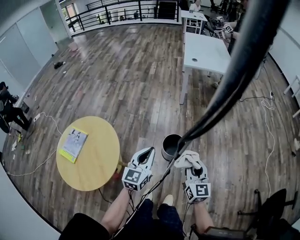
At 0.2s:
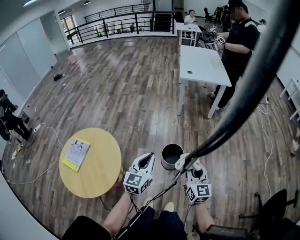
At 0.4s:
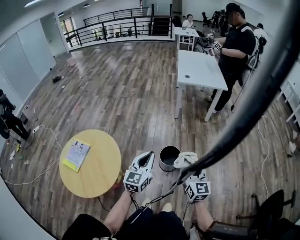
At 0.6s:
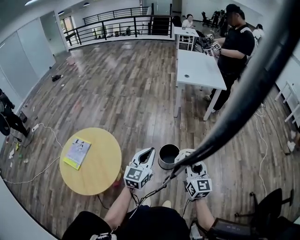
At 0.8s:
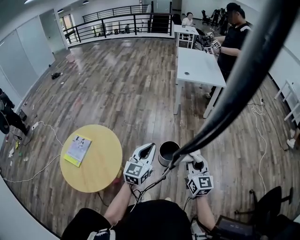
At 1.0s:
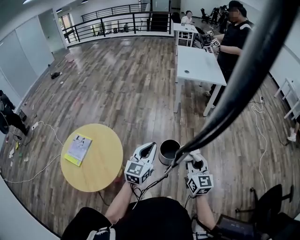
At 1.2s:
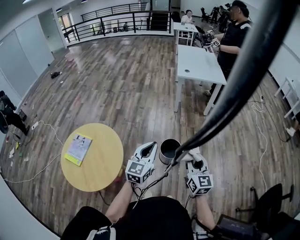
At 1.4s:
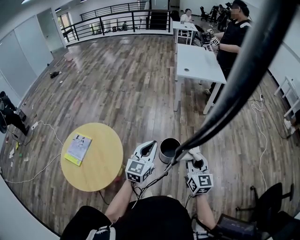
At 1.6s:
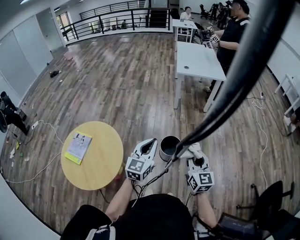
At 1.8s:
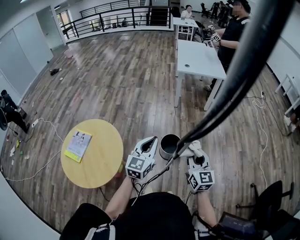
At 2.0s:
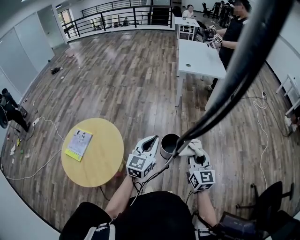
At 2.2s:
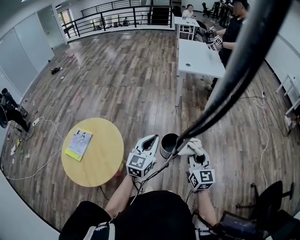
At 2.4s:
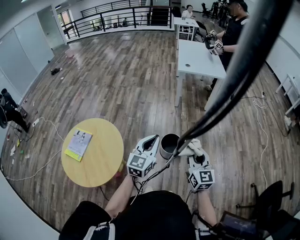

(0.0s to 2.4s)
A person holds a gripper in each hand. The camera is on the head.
0.0s - 1.2s: The two grippers go roughly 10 cm upward.
1.2s - 2.4s: Both grippers stay put.

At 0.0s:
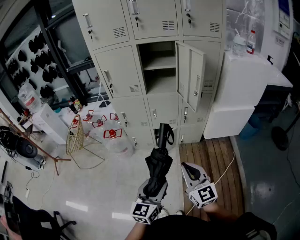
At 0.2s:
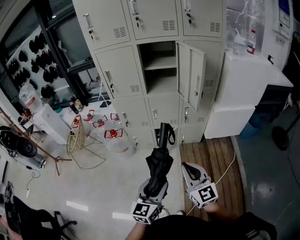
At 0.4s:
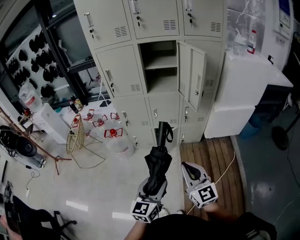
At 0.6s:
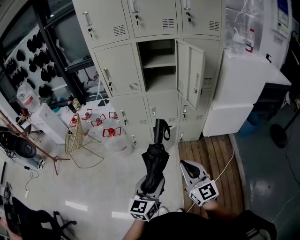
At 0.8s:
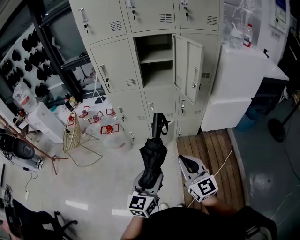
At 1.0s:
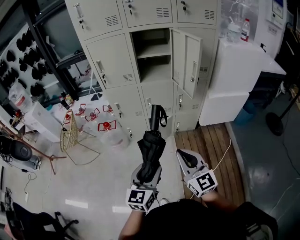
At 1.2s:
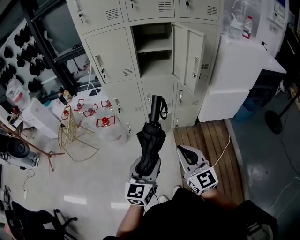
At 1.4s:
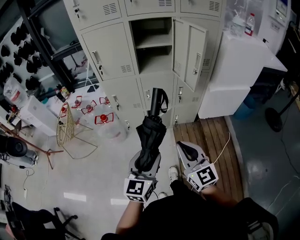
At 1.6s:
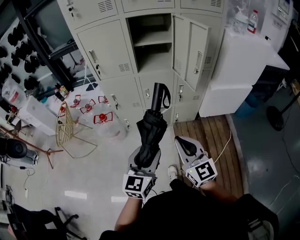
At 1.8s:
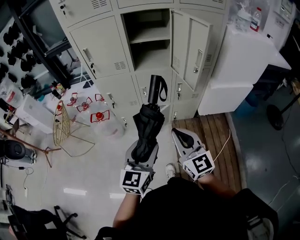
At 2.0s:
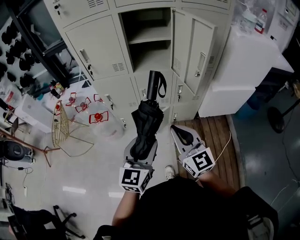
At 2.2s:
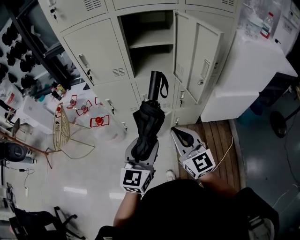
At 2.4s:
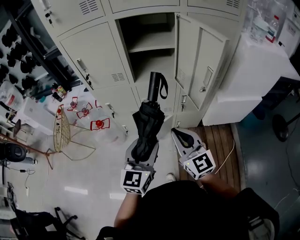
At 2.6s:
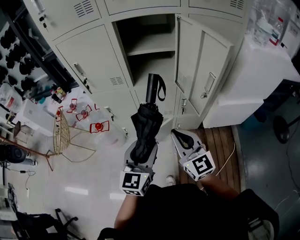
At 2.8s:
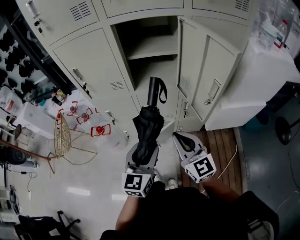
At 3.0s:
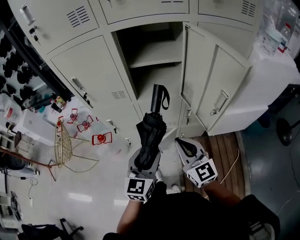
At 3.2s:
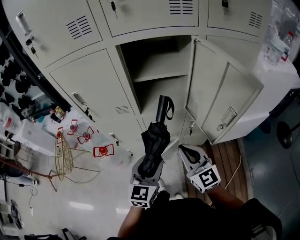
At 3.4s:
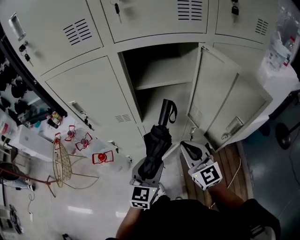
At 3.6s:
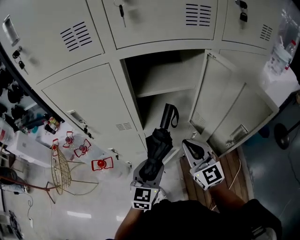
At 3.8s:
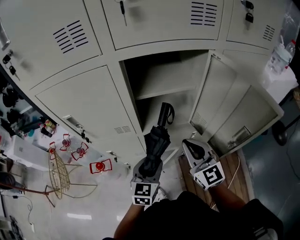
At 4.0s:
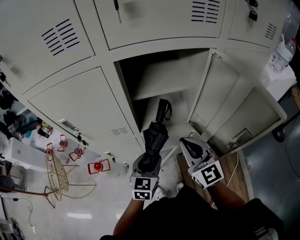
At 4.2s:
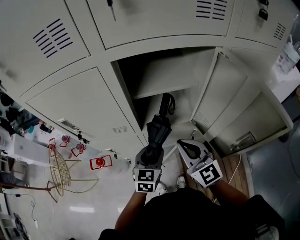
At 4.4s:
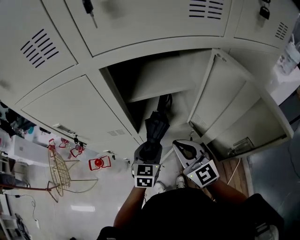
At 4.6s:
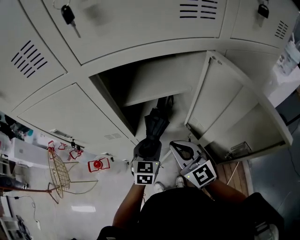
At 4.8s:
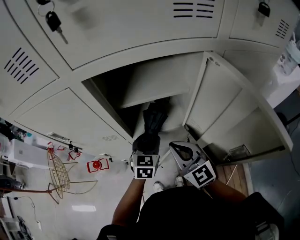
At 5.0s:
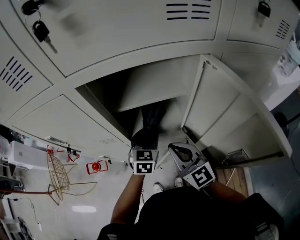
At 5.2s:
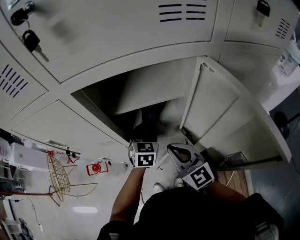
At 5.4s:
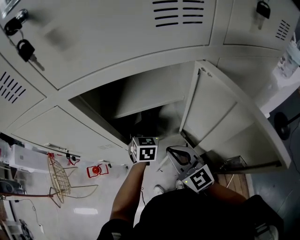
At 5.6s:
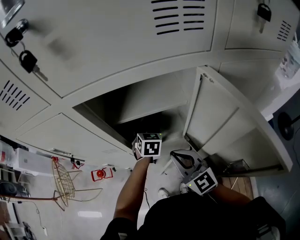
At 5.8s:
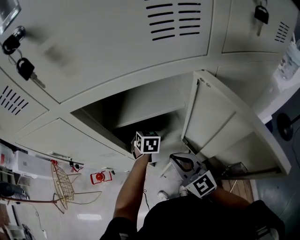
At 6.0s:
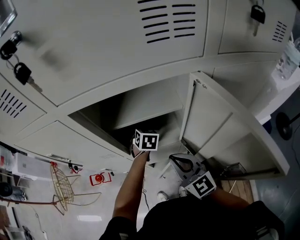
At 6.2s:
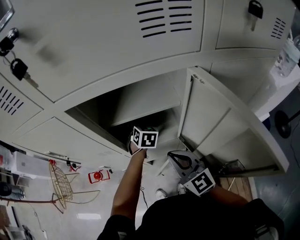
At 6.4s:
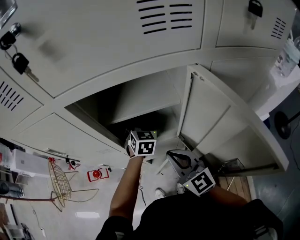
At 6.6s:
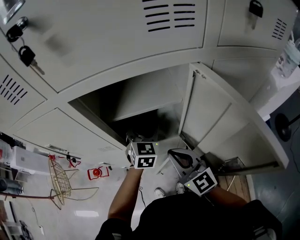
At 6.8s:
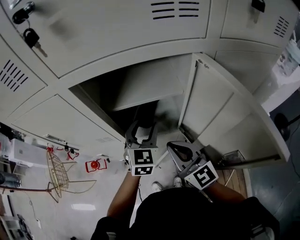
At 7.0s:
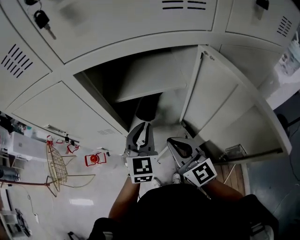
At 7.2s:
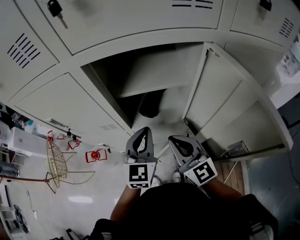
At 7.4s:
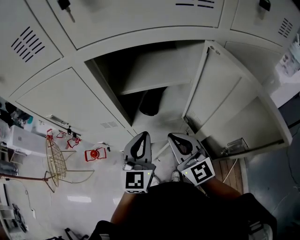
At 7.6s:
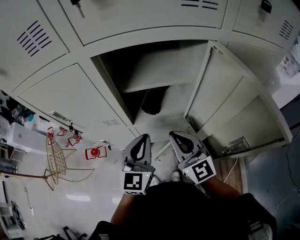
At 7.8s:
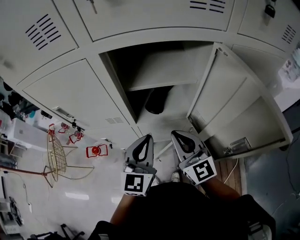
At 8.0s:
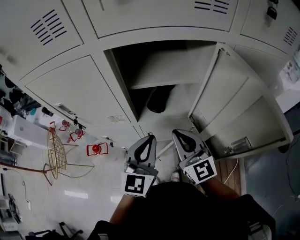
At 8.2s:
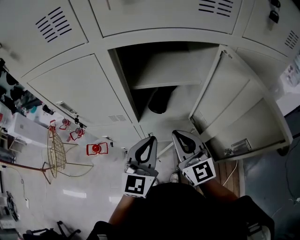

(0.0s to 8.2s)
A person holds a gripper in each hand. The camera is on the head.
0.0s - 1.6s: The two grippers go approximately 10 cm forward.
1.6s - 3.2s: Both grippers travel together forward, some 30 cm.
3.2s - 5.0s: The right gripper heads forward, covering roughly 15 cm, while the left gripper shifts about 25 cm forward.
5.0s - 6.6s: The left gripper is displaced upward by some 5 cm.
6.6s - 8.2s: The left gripper goes about 20 cm backward, changes its angle by some 20 degrees, and closes.

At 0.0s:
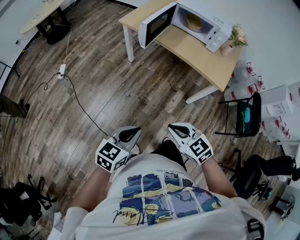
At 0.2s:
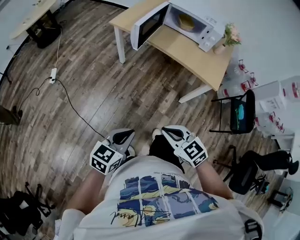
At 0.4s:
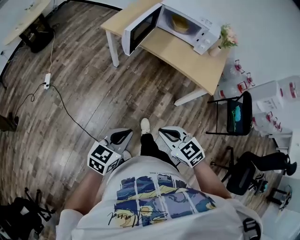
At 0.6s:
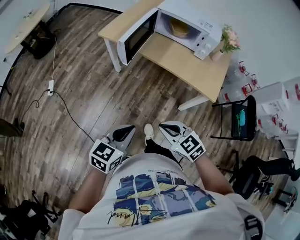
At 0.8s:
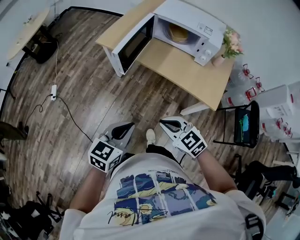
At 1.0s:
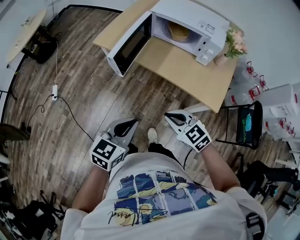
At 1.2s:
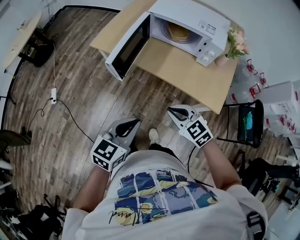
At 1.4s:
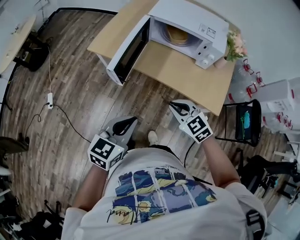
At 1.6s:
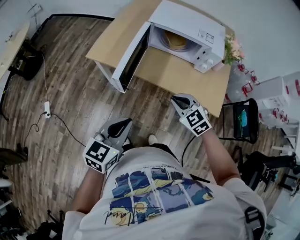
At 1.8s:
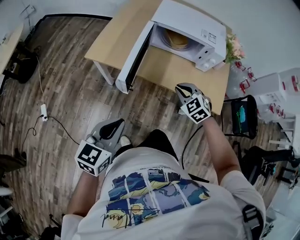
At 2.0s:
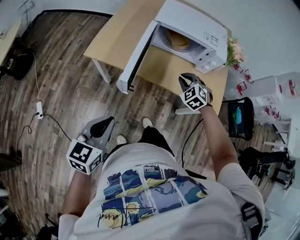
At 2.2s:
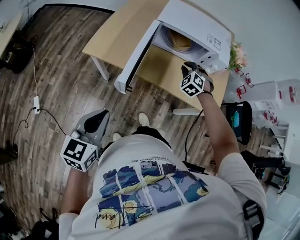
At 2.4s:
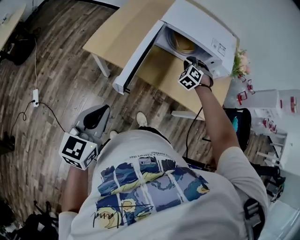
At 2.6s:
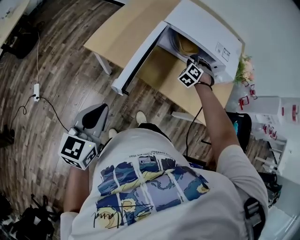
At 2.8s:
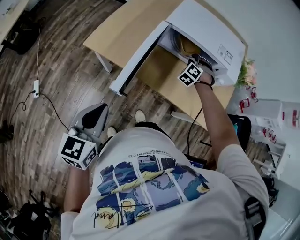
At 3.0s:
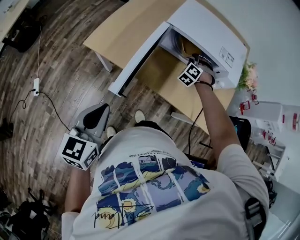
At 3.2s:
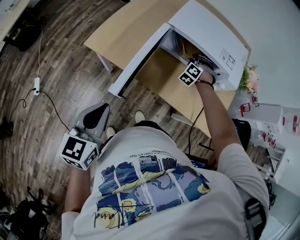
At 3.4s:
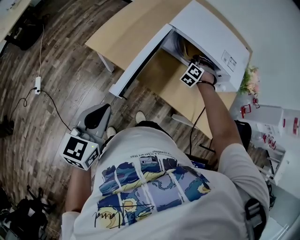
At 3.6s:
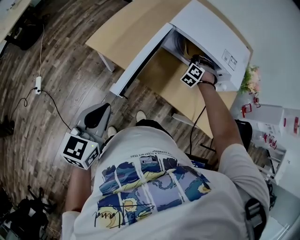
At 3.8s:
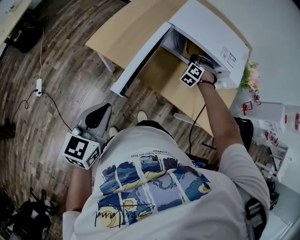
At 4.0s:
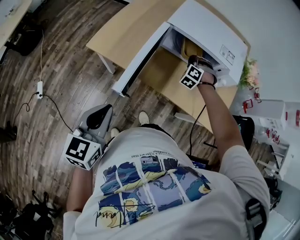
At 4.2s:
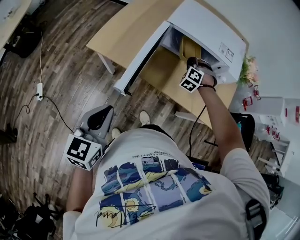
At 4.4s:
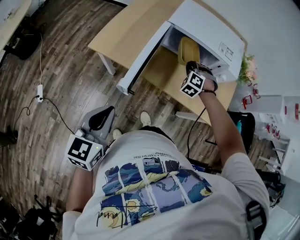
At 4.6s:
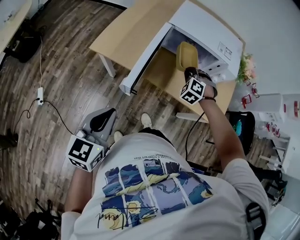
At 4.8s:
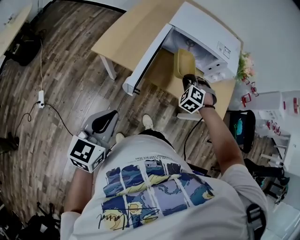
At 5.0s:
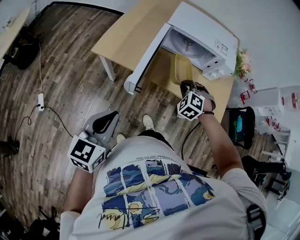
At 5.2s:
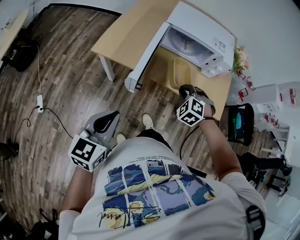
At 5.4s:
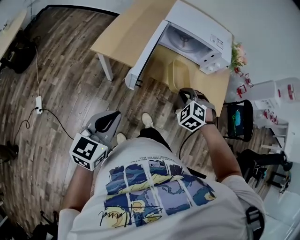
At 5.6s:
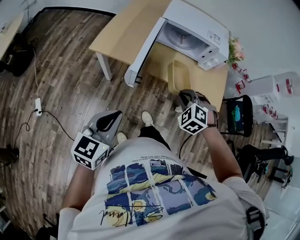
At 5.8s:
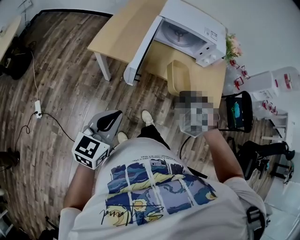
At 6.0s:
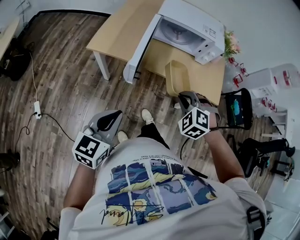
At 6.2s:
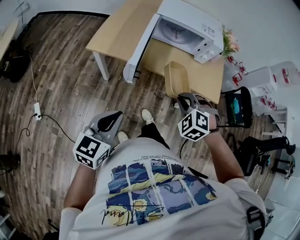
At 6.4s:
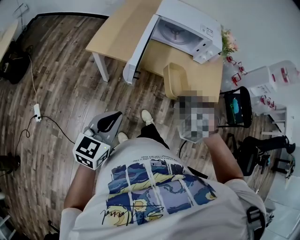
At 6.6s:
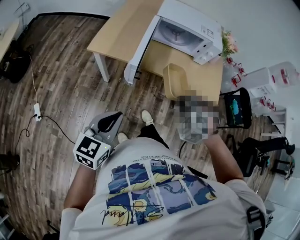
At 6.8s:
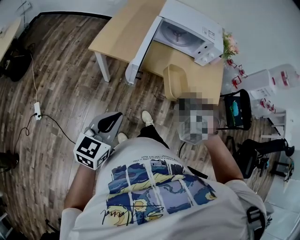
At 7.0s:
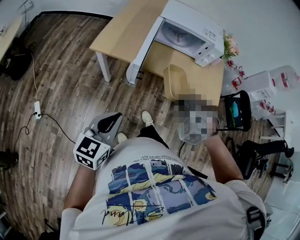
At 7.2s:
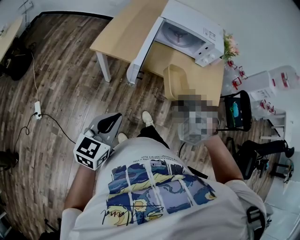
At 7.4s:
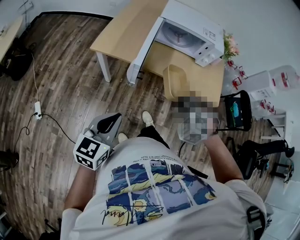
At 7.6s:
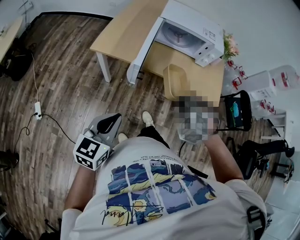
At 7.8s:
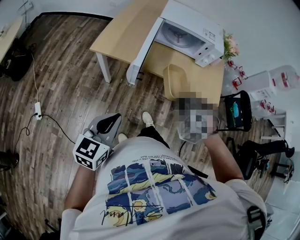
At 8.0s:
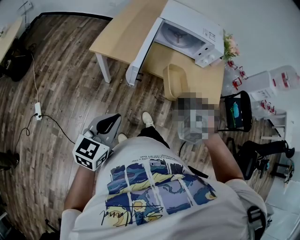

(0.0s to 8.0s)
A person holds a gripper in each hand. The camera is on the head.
0.0s - 1.6s: The left gripper moves about 35 cm.
1.6s - 3.2s: The left gripper moves some 15 cm.
3.2s - 4.8s: The left gripper changes place by roughly 5 cm.
4.8s - 6.4s: The left gripper ends up some 10 cm from where it was.

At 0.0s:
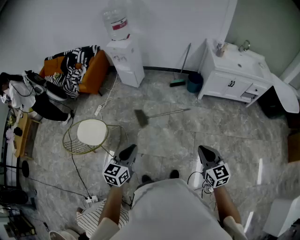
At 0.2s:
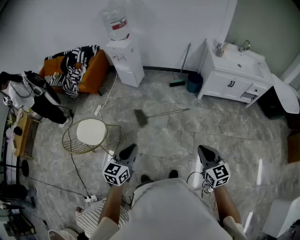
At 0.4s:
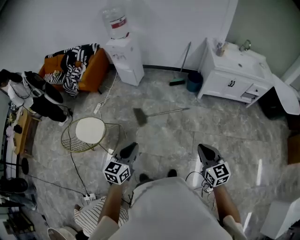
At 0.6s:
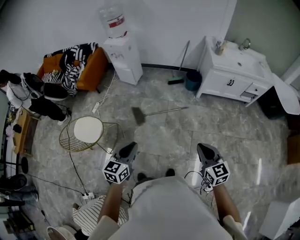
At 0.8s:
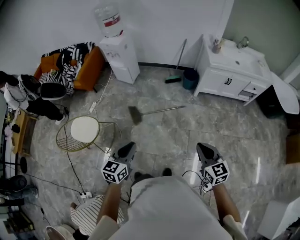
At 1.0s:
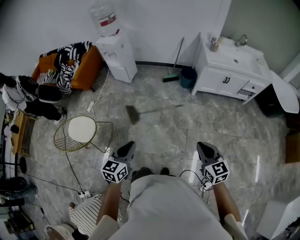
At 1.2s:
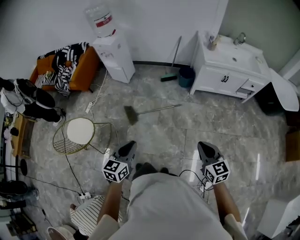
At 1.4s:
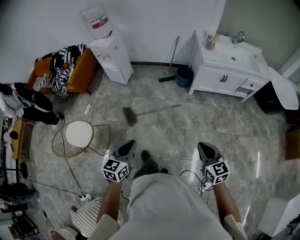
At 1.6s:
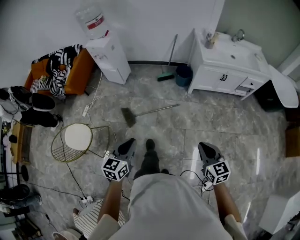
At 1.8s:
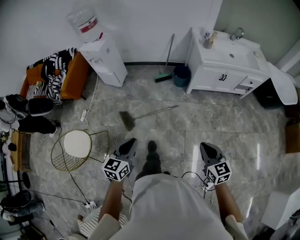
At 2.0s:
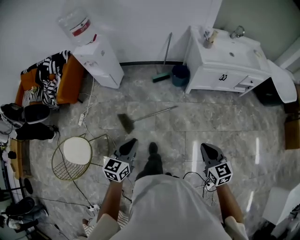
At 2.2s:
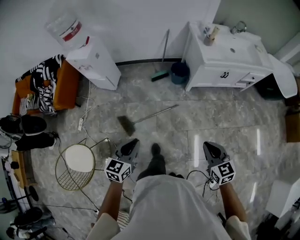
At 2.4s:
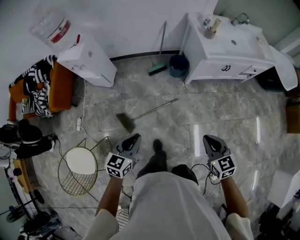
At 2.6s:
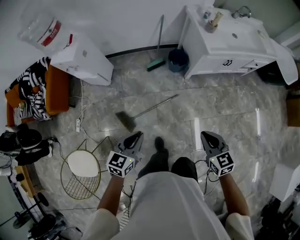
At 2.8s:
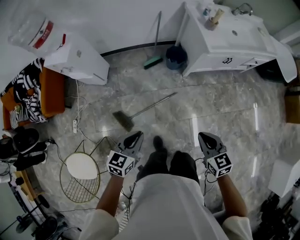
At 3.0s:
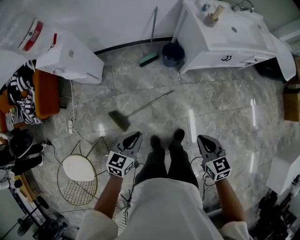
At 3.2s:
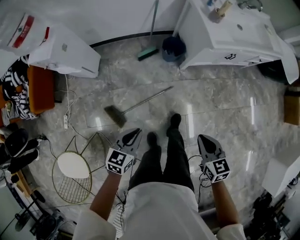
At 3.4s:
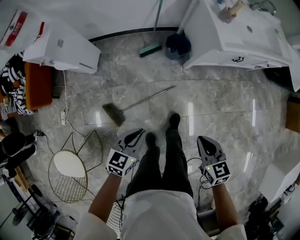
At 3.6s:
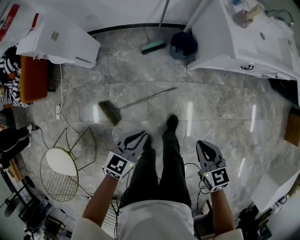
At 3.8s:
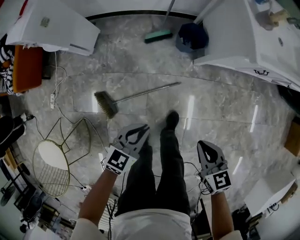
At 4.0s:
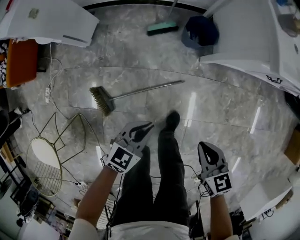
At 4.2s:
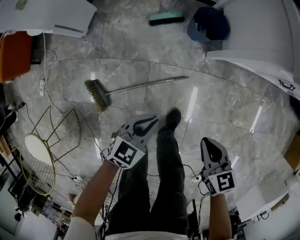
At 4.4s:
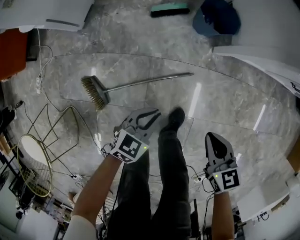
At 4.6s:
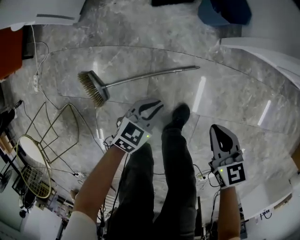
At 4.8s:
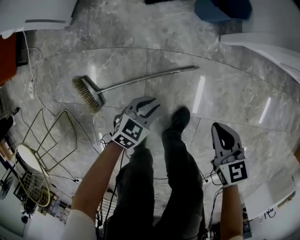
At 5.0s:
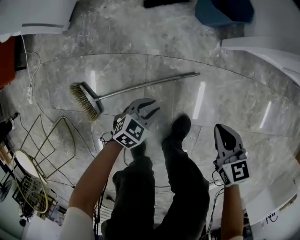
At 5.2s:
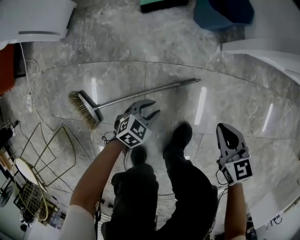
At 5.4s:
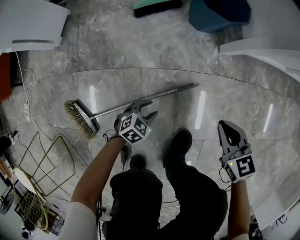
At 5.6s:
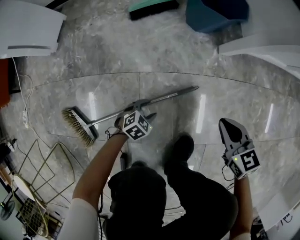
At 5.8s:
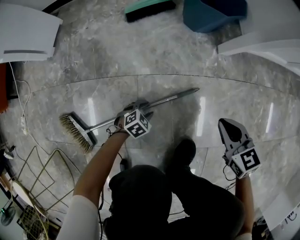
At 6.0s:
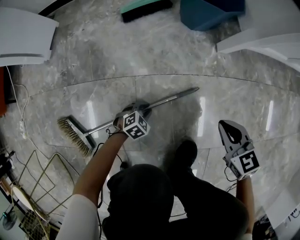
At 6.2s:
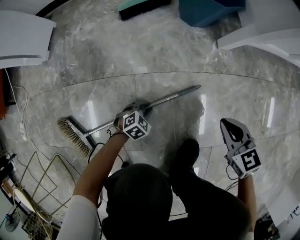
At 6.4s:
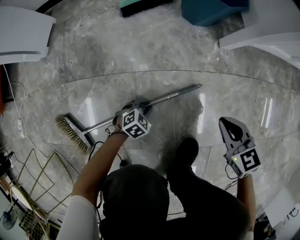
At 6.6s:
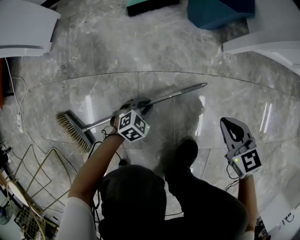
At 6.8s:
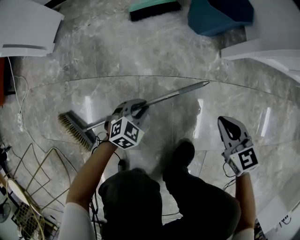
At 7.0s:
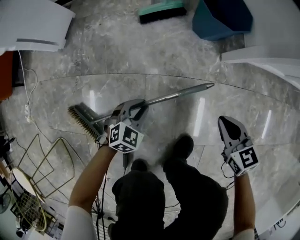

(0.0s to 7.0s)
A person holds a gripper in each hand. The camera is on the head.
0.0s - 1.4s: Both grippers travel together to the right and forward, roughly 20 cm.
1.4s - 2.8s: The grippers both shift forward by some 35 cm. The left gripper turns by about 20 degrees.
2.8s - 4.2s: Both grippers travel together downward and forward, some 50 cm.
4.2s - 5.6s: The two grippers go about 40 cm downward. The left gripper swivels about 30 degrees, and opens up.
5.6s - 7.0s: The right gripper moves some 5 cm downward and comes back; the left gripper goes roughly 15 cm upward and to the left, turns by roughly 20 degrees, and closes its fingers.
